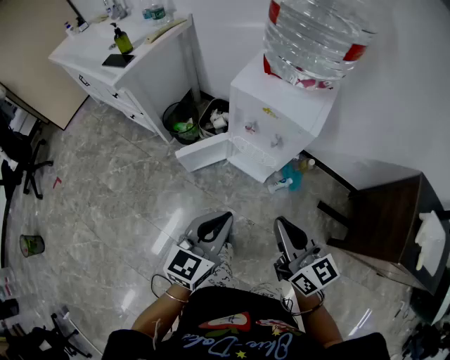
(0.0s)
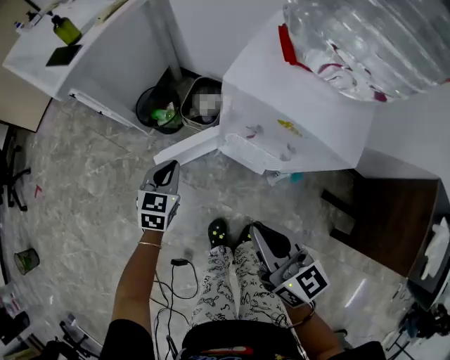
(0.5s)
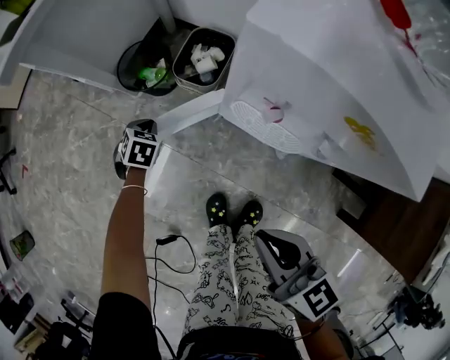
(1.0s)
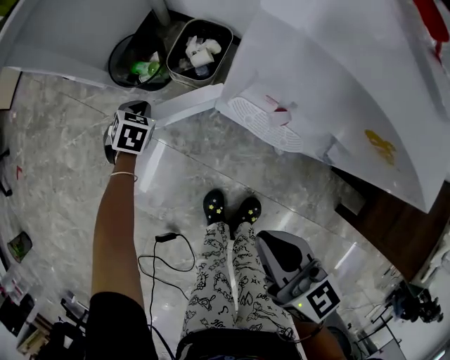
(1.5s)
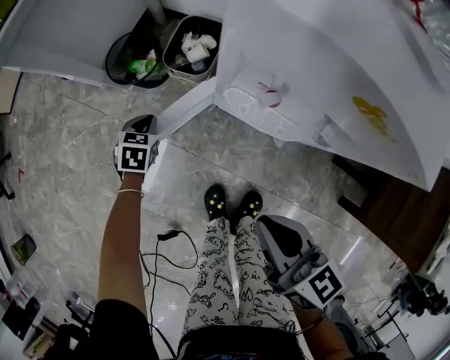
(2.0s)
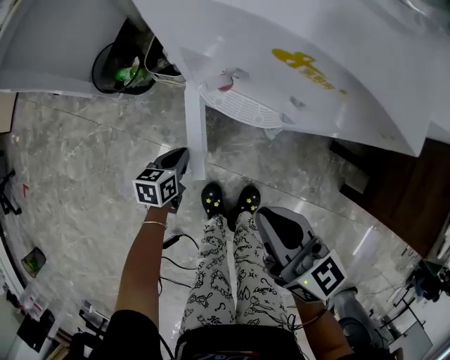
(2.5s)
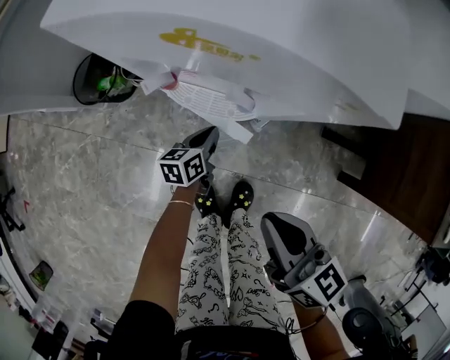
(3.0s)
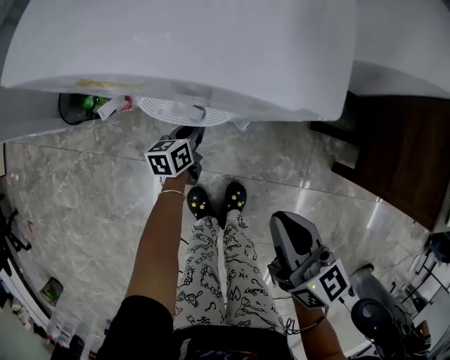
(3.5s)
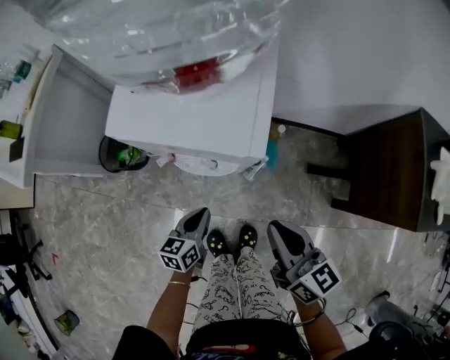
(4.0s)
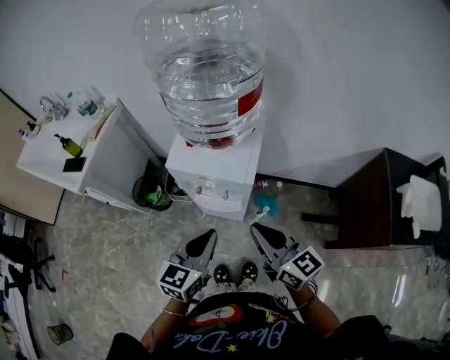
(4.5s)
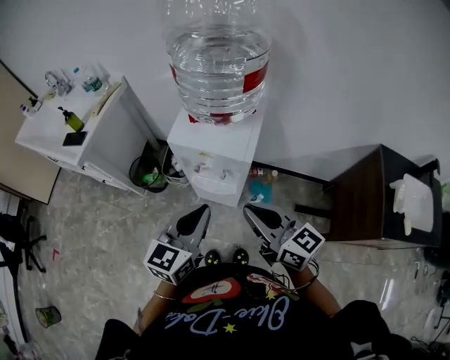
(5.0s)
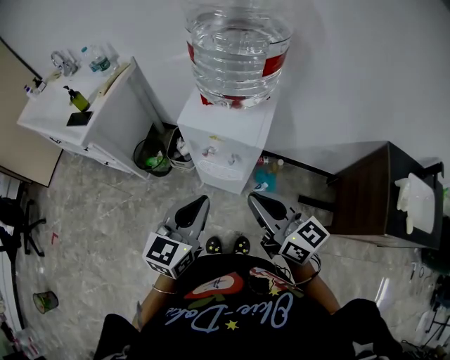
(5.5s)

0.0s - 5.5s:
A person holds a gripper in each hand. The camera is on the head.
0.0s - 2.0s: The right gripper is displaced downward and forward by some 25 cm. Meanwhile the left gripper shifts some 60 cm downward and forward, and points its fingers roughly 40 degrees further downward.
2.0s - 3.5s: The left gripper shifts by about 35 cm, and turns by some 40 degrees; the right gripper changes place by about 20 cm, and changes its angle by roughly 20 degrees.
3.5s - 5.5s: The left gripper shifts approximately 60 cm upward, and changes its angle by approximately 40 degrees; the right gripper travels upward by approximately 30 cm, and swivels roughly 30 degrees.

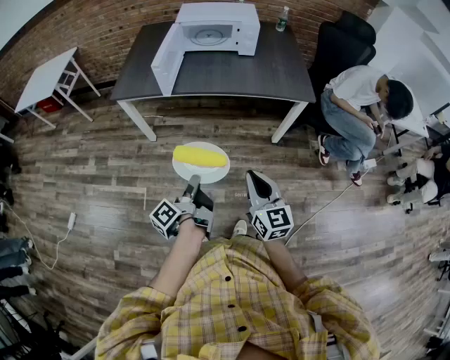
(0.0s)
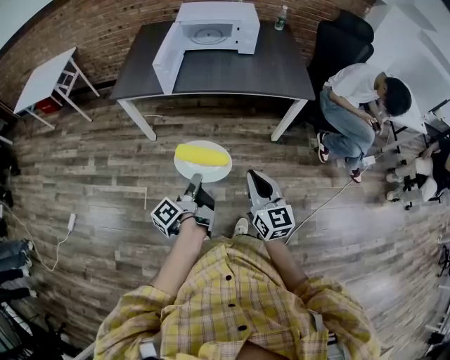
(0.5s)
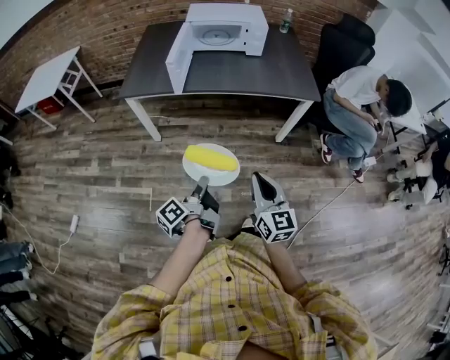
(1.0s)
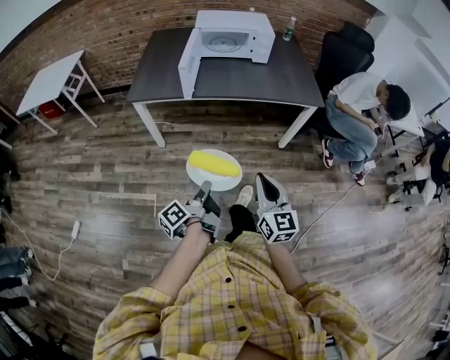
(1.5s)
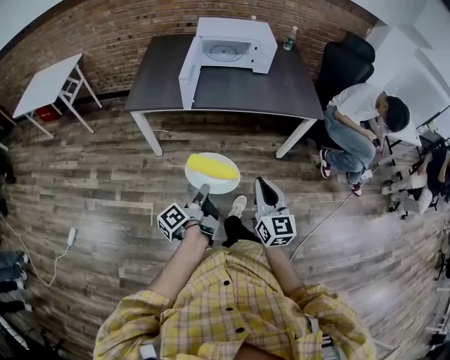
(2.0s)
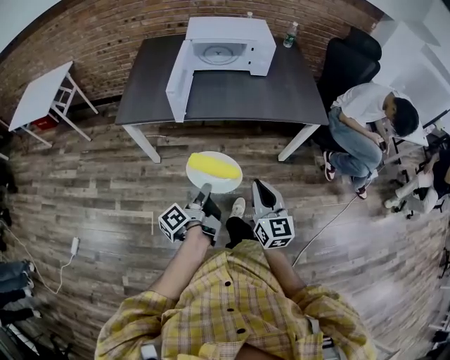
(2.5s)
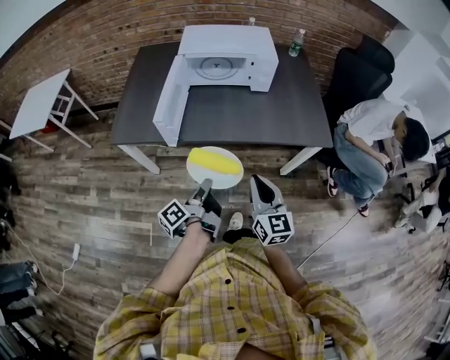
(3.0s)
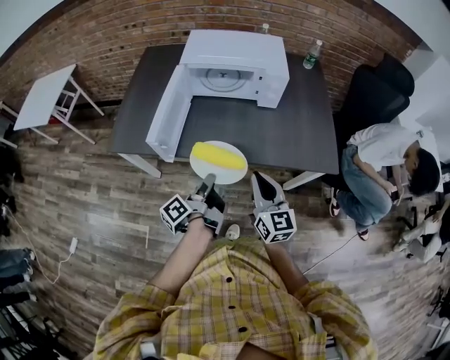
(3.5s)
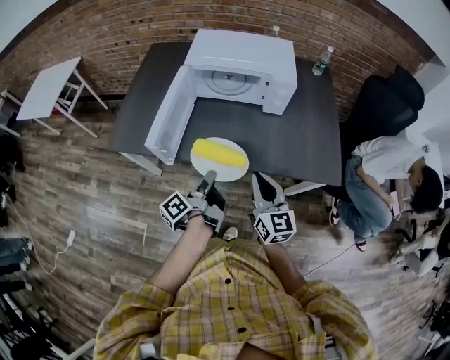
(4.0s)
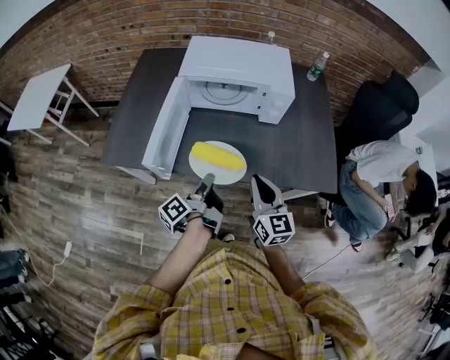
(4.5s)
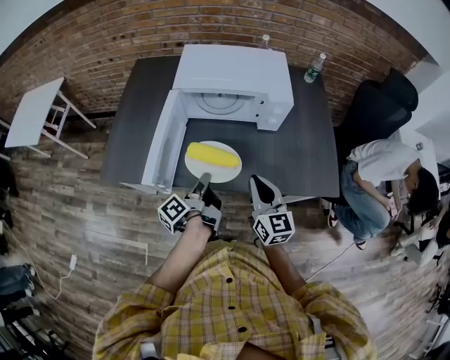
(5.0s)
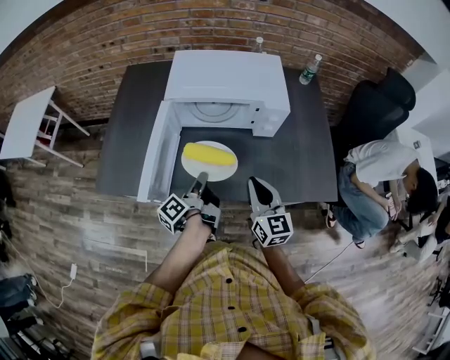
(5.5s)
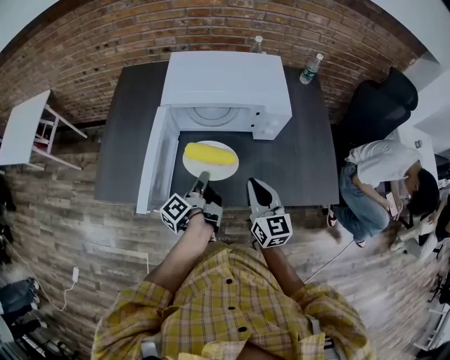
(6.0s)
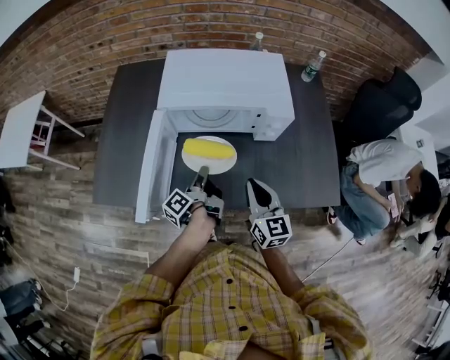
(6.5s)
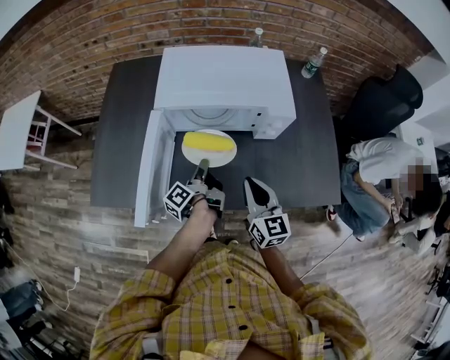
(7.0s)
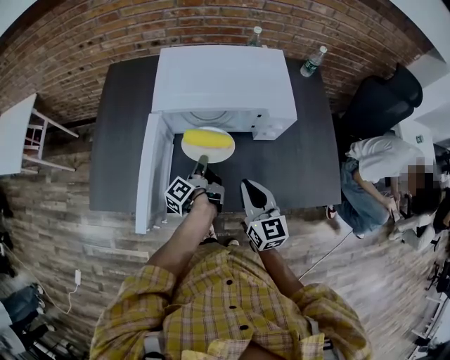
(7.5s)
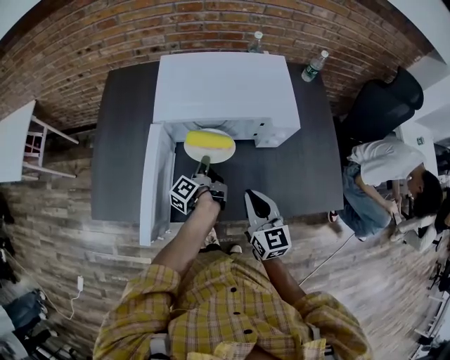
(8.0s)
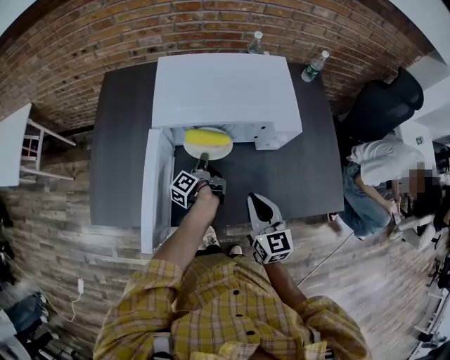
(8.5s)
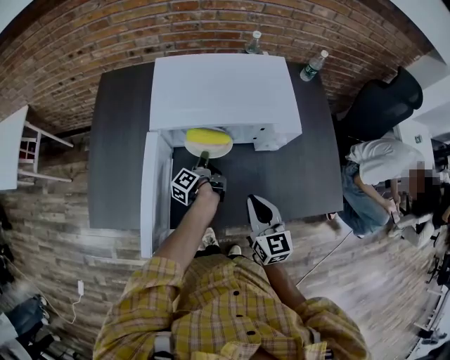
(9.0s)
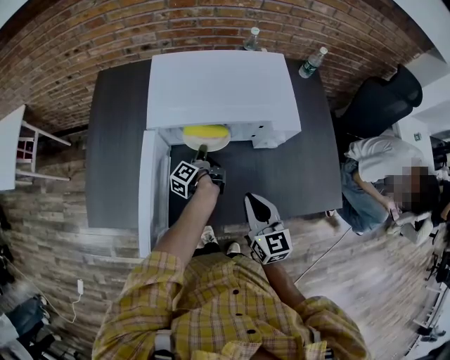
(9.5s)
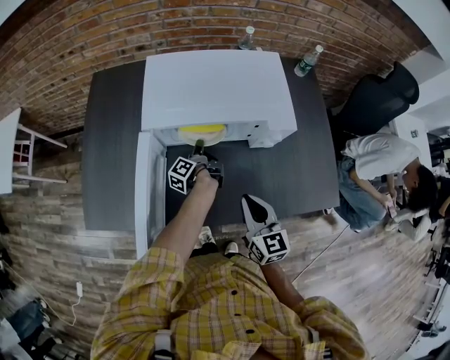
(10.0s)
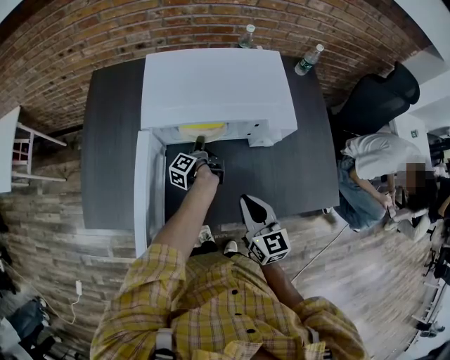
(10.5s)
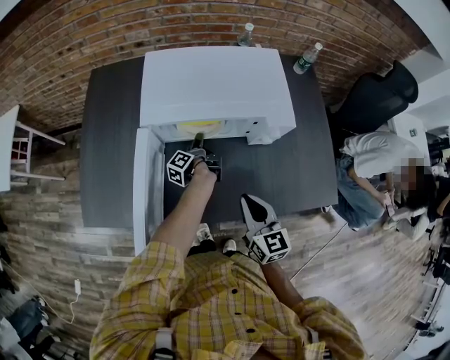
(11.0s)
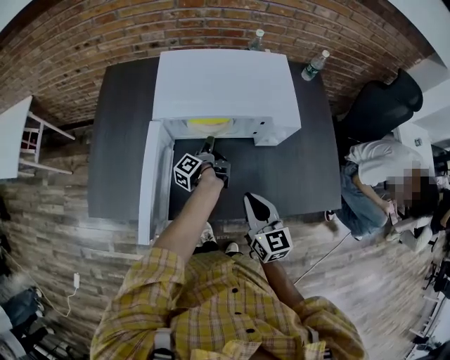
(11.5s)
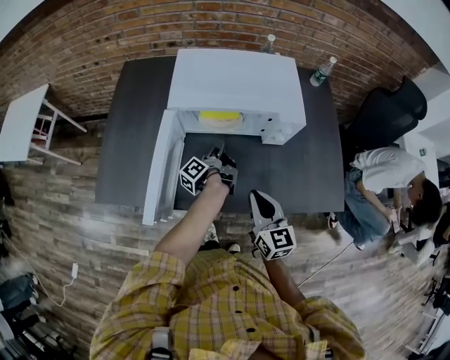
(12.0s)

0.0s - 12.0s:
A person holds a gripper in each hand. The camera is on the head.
0.0s - 2.0s: The right gripper ends up about 10 cm from where it was.
2.0s - 4.0s: The right gripper changes place by approximately 40 cm.
4.0s - 6.0s: The right gripper shifts by about 15 cm.
6.0s - 8.0s: The right gripper moves about 5 cm.

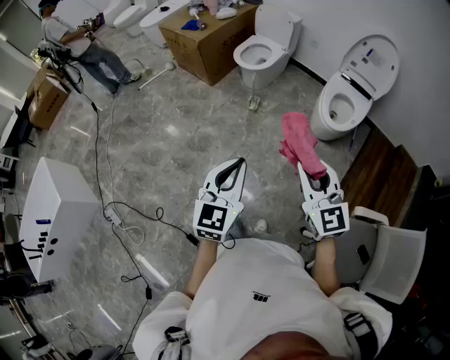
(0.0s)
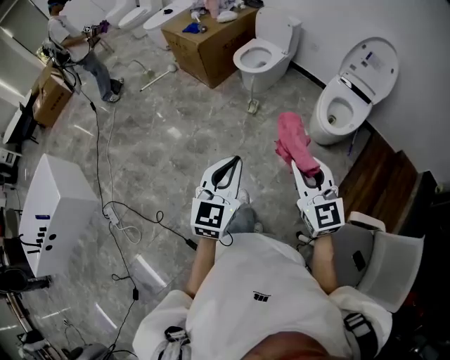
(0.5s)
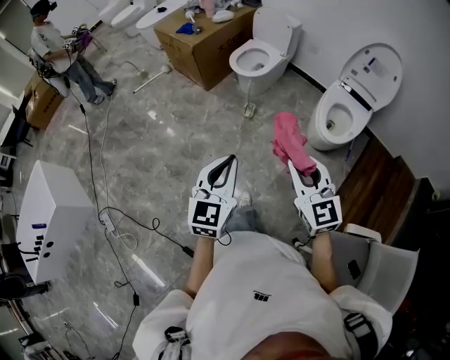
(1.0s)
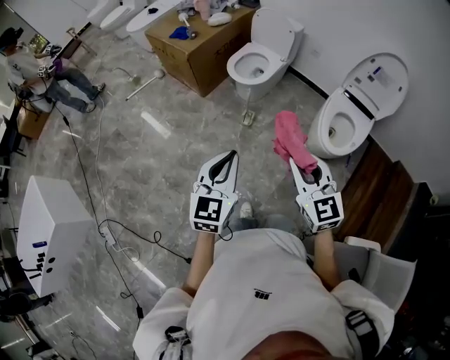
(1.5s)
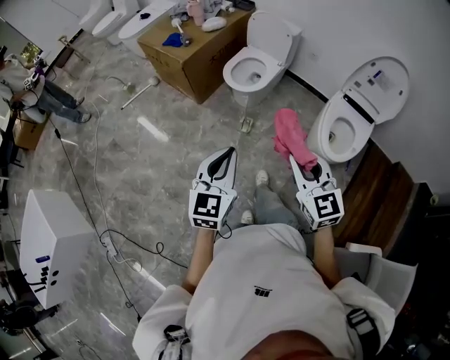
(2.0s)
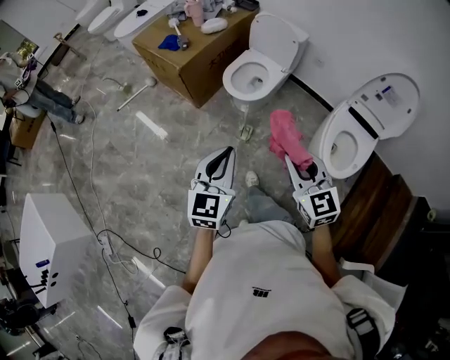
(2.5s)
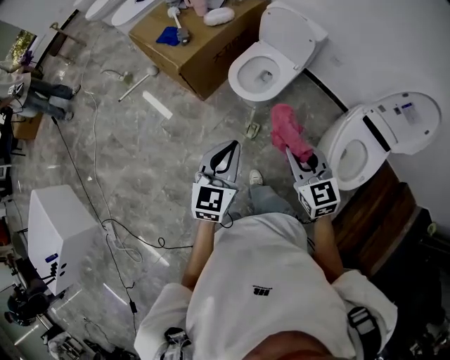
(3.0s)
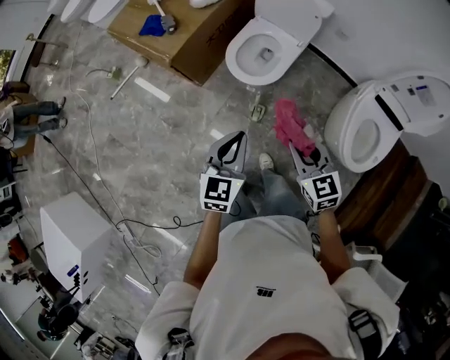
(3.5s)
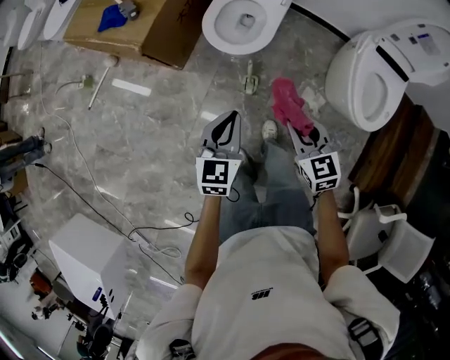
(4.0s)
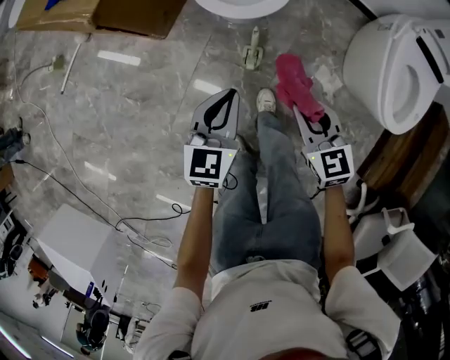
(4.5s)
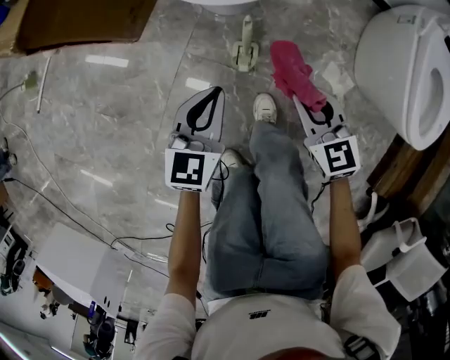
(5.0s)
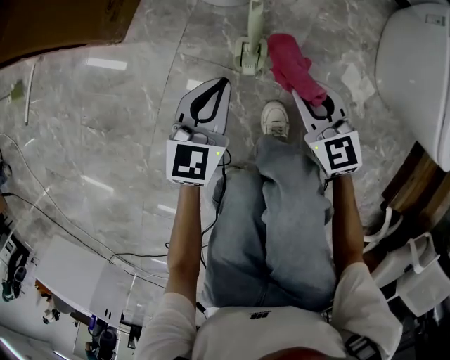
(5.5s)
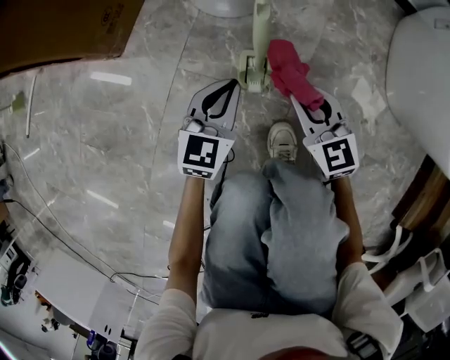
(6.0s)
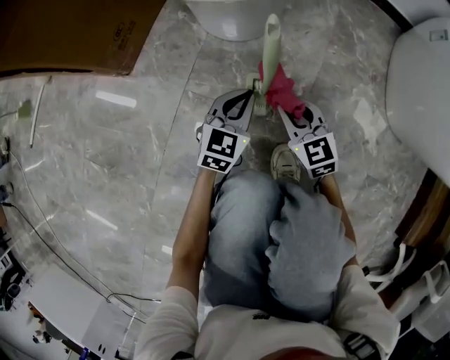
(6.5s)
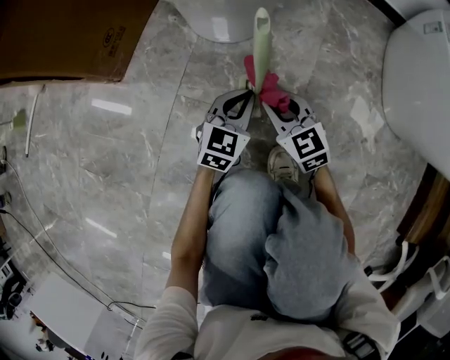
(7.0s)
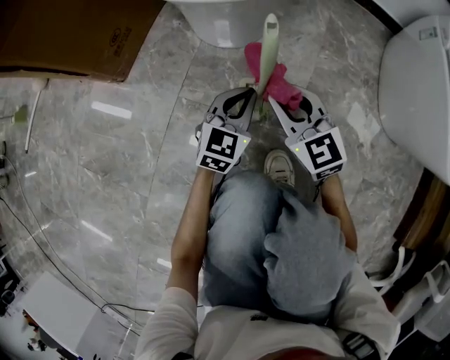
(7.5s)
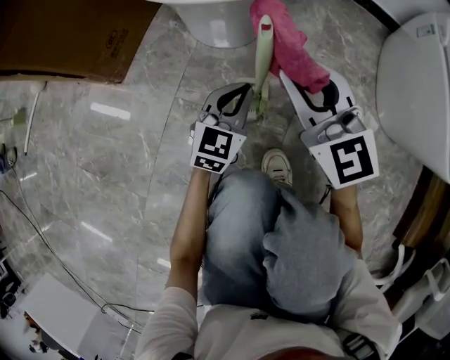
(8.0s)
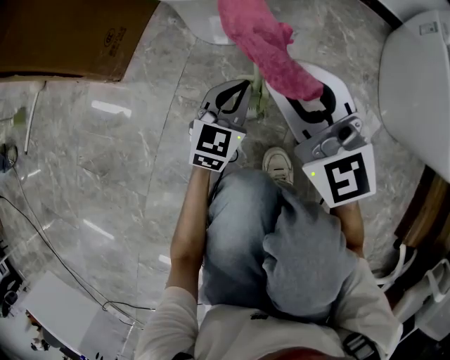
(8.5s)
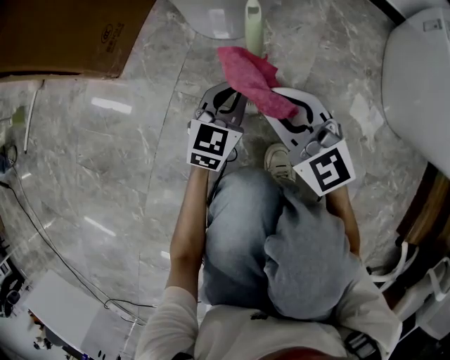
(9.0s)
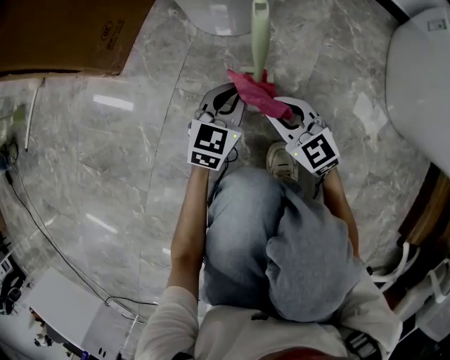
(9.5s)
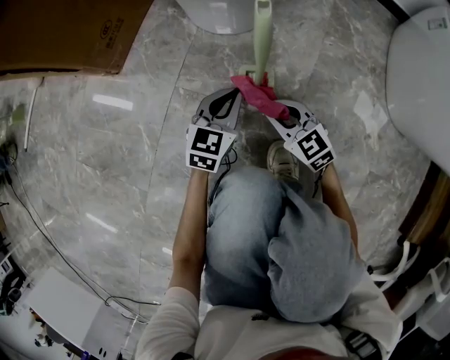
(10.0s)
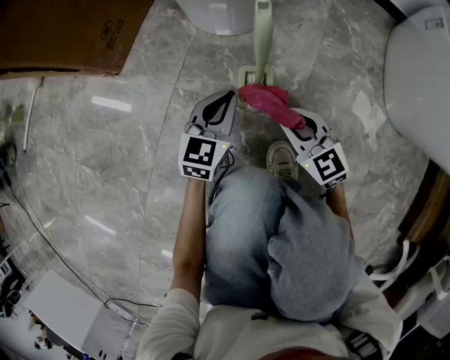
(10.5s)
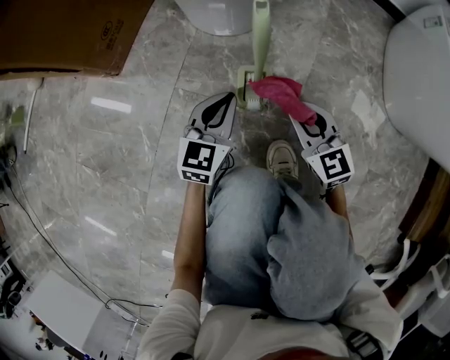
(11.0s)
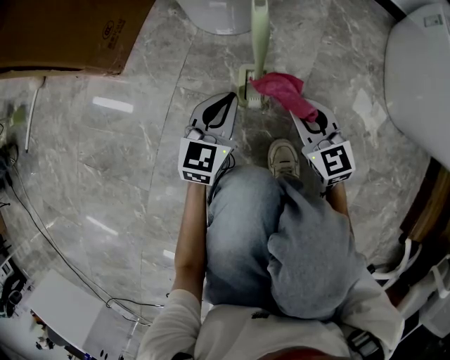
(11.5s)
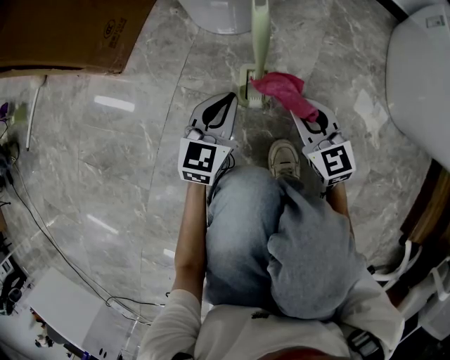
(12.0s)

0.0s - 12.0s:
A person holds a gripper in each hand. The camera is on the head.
0.0s - 2.0s: The grippers both shift forward by some 30 cm.
2.0s - 4.0s: Both grippers travel together forward and downward, about 40 cm. The right gripper rotates some 30 degrees.
4.0s - 6.0s: The grippers both shift downward by roughly 60 cm.
6.0s - 8.0s: The left gripper travels downward and back again, approximately 10 cm each way. Meanwhile the right gripper shifts about 15 cm upward and forward.
8.0s - 10.0s: The right gripper travels downward by approximately 25 cm, and turns by about 30 degrees. The left gripper travels downward by about 10 cm.
10.0s - 12.0s: The left gripper moves about 5 cm, while the right gripper heads upward and to the right, covering approximately 10 cm.
